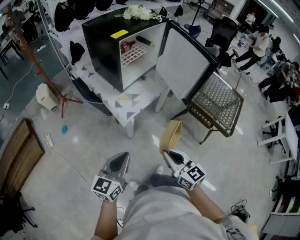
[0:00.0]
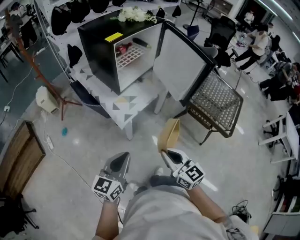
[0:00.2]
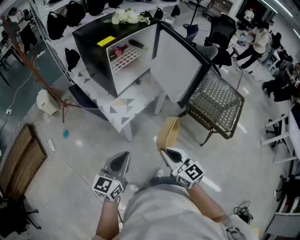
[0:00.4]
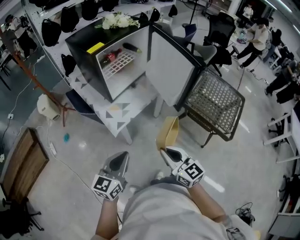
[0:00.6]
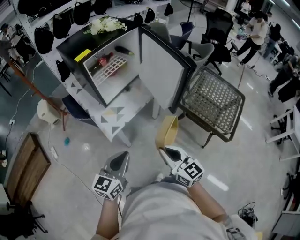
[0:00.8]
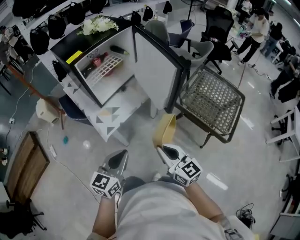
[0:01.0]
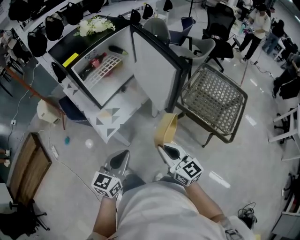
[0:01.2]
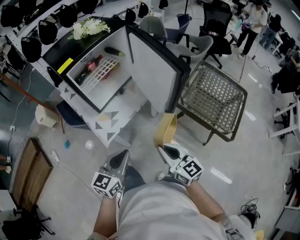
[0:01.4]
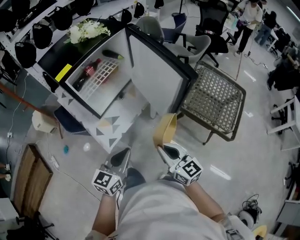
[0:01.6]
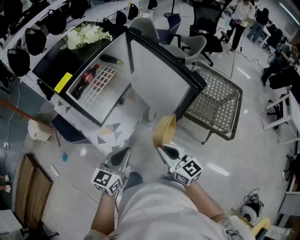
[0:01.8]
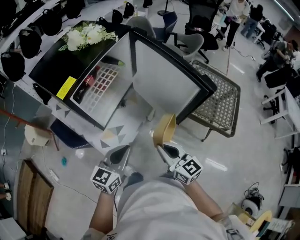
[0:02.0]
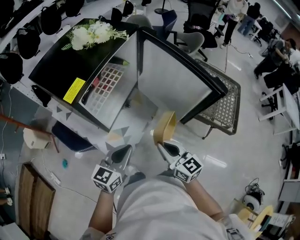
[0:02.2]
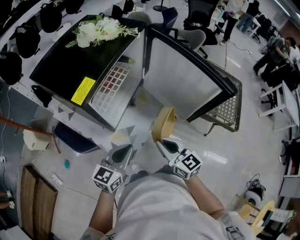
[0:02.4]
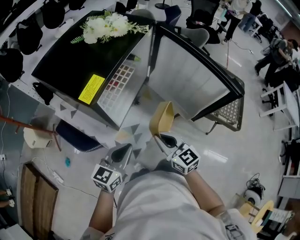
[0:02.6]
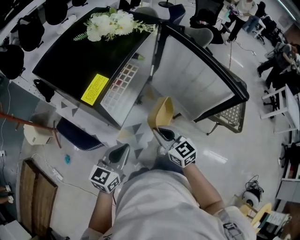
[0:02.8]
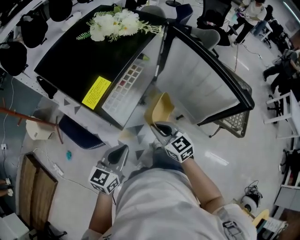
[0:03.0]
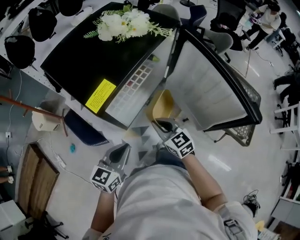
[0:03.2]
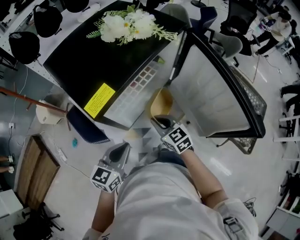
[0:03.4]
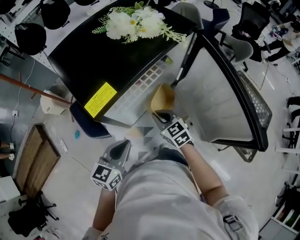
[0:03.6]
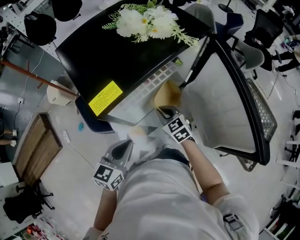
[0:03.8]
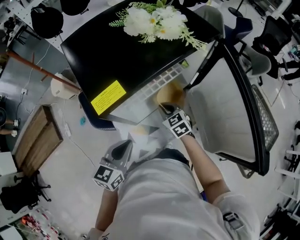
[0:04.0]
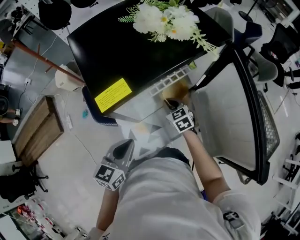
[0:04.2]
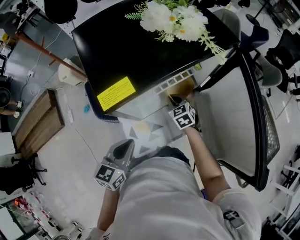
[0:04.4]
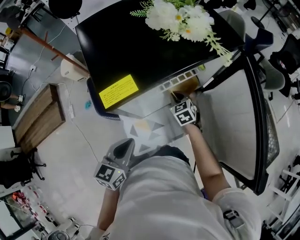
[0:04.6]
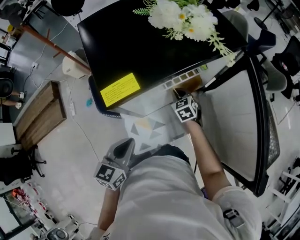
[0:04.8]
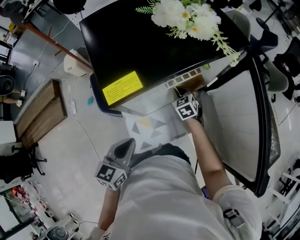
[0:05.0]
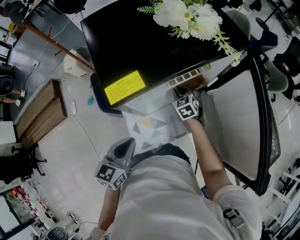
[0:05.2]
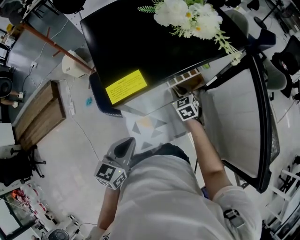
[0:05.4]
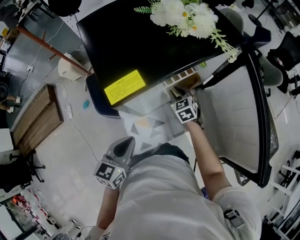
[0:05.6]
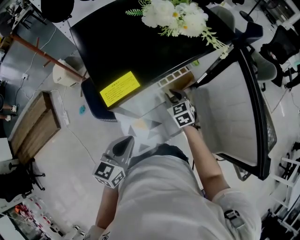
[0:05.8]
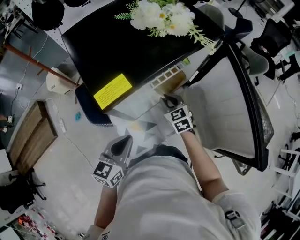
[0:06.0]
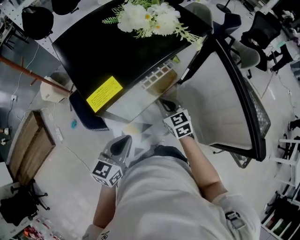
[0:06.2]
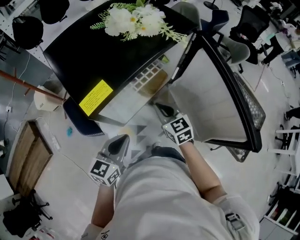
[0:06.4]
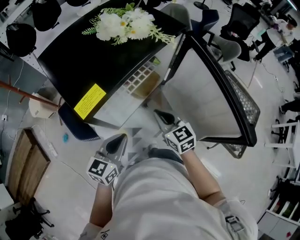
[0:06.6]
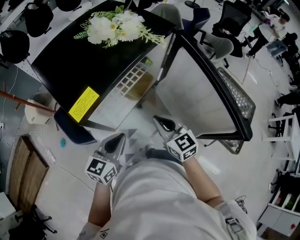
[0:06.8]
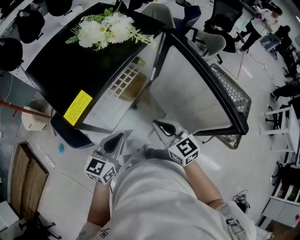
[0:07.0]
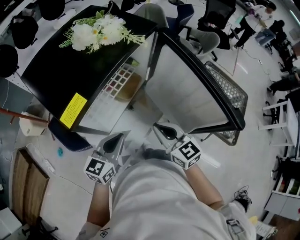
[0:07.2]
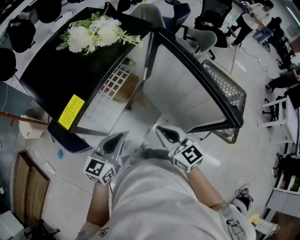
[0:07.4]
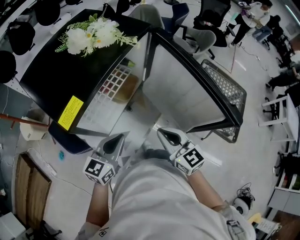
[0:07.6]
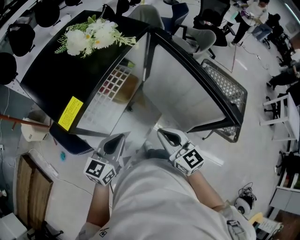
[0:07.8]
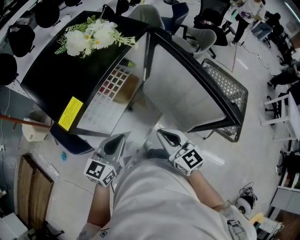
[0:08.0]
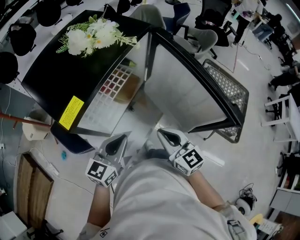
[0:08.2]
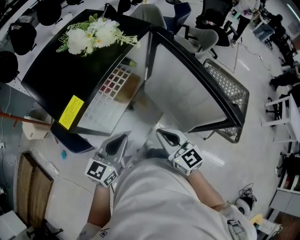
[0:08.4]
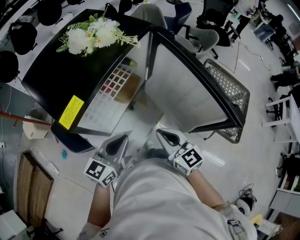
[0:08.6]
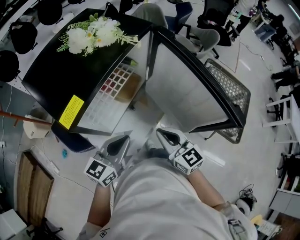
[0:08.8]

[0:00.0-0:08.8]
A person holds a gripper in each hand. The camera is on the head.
0:00.0 to 0:01.4: Both grippers travel together to the right and forward, about 25 cm.
0:01.4 to 0:03.0: The grippers both shift to the left and forward by approximately 30 cm.
0:03.0 to 0:04.4: The left gripper rotates approximately 30 degrees. The right gripper moves forward and downward, some 25 cm, and turns by approximately 30 degrees.
0:04.4 to 0:05.8: The grippers make only small movements.
0:05.8 to 0:07.4: The left gripper shifts some 10 cm to the right, and changes its angle by approximately 30 degrees, while the right gripper is displaced backward, upward and to the right by roughly 30 cm, and swivels about 30 degrees.
0:07.4 to 0:08.8: There are only small adjustments of the grippers.

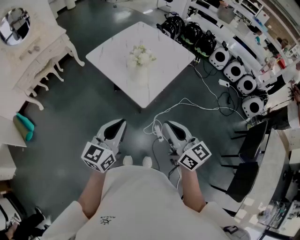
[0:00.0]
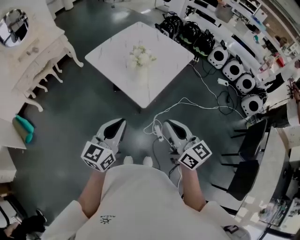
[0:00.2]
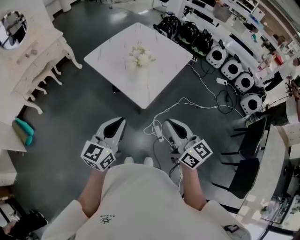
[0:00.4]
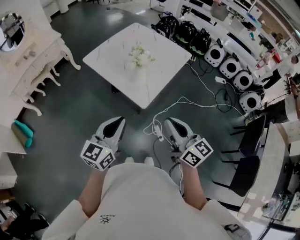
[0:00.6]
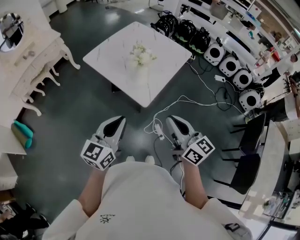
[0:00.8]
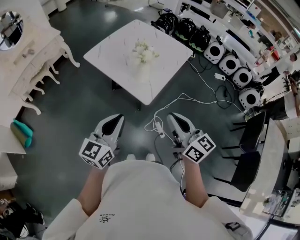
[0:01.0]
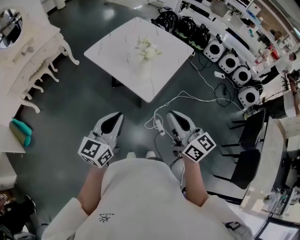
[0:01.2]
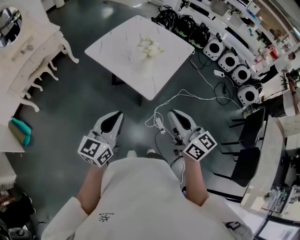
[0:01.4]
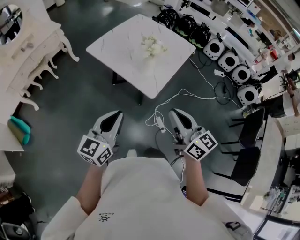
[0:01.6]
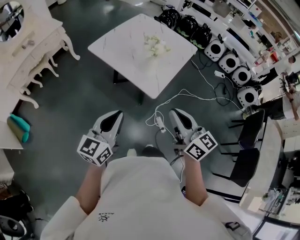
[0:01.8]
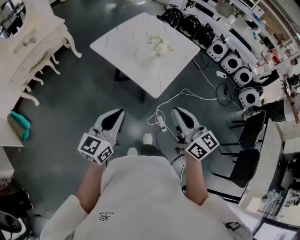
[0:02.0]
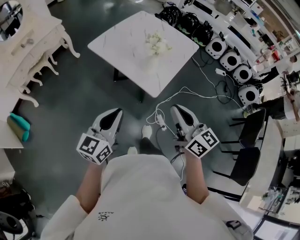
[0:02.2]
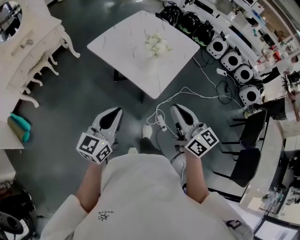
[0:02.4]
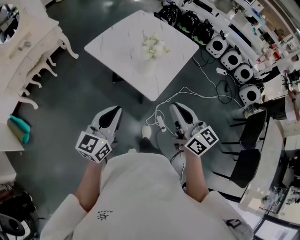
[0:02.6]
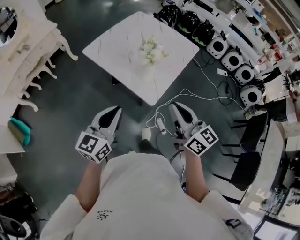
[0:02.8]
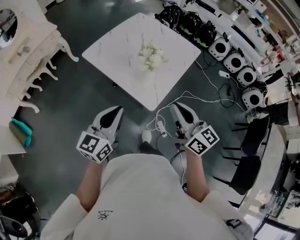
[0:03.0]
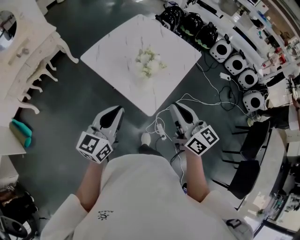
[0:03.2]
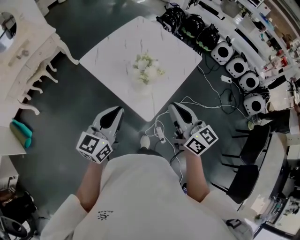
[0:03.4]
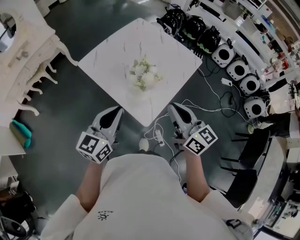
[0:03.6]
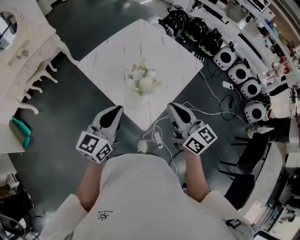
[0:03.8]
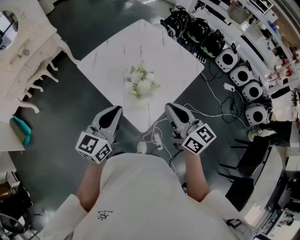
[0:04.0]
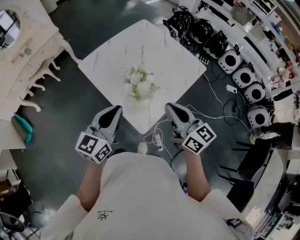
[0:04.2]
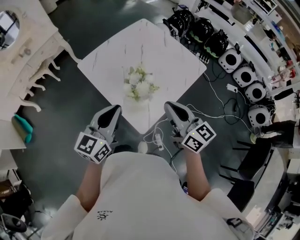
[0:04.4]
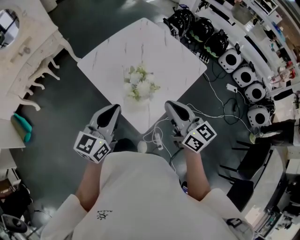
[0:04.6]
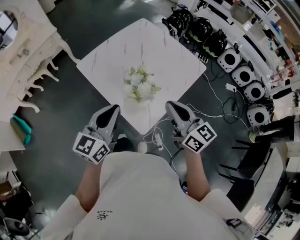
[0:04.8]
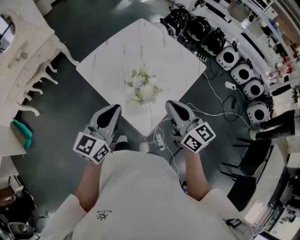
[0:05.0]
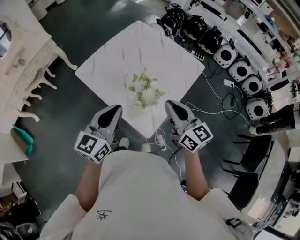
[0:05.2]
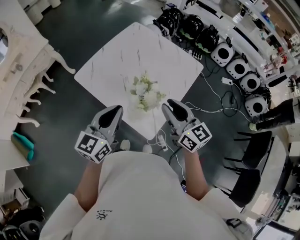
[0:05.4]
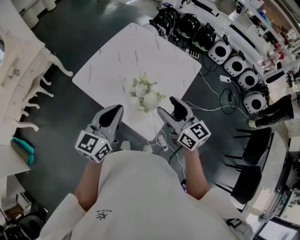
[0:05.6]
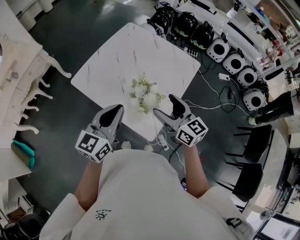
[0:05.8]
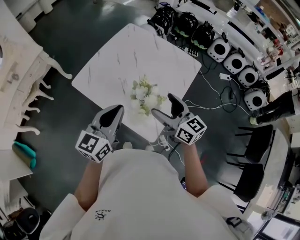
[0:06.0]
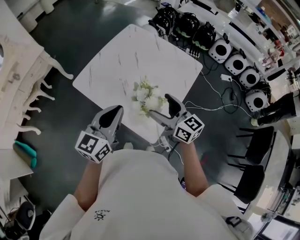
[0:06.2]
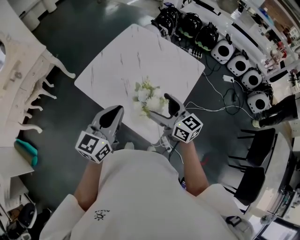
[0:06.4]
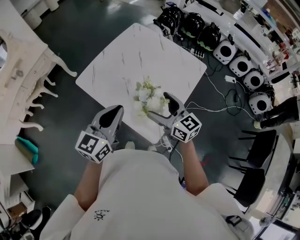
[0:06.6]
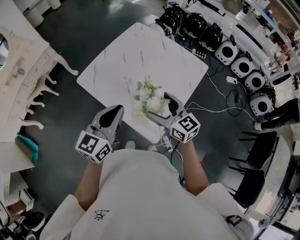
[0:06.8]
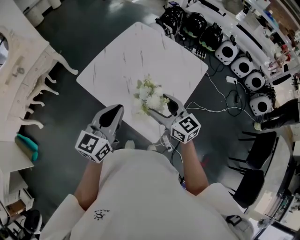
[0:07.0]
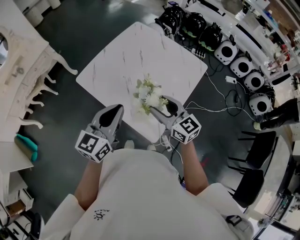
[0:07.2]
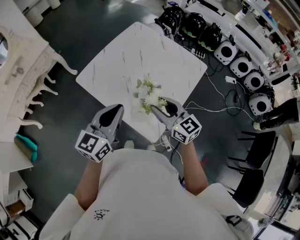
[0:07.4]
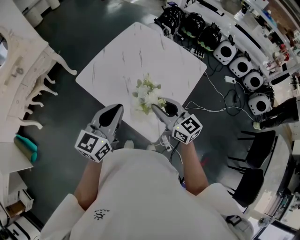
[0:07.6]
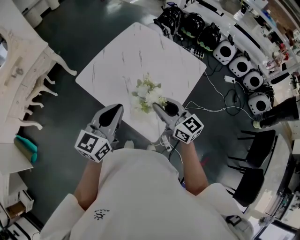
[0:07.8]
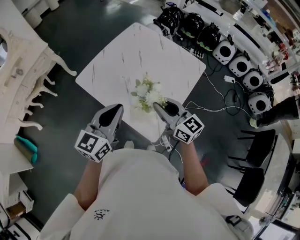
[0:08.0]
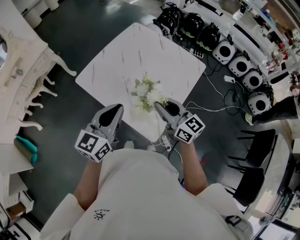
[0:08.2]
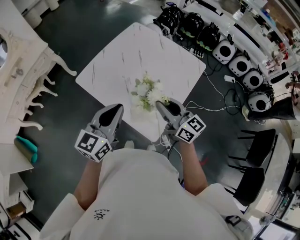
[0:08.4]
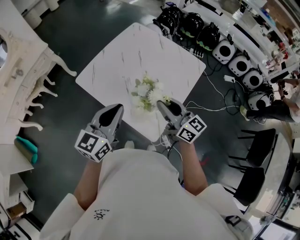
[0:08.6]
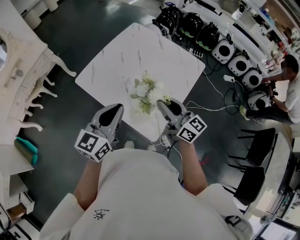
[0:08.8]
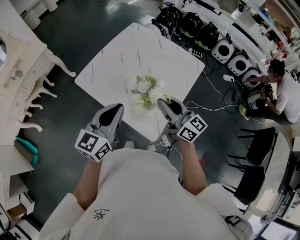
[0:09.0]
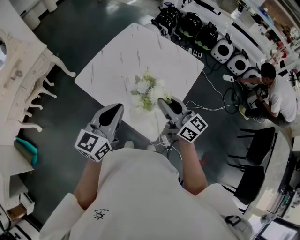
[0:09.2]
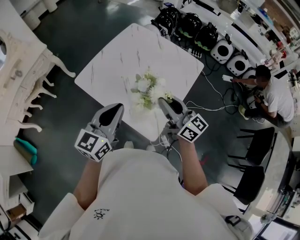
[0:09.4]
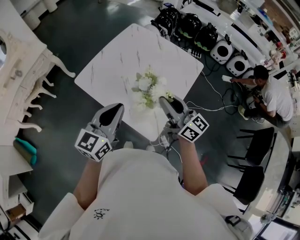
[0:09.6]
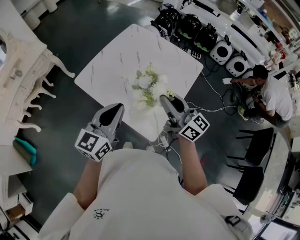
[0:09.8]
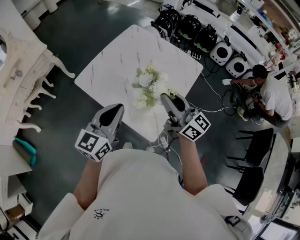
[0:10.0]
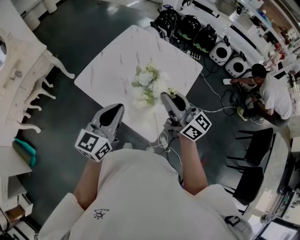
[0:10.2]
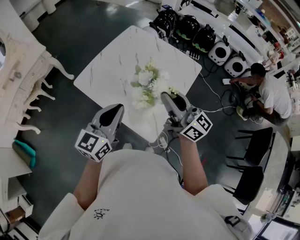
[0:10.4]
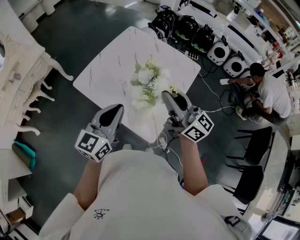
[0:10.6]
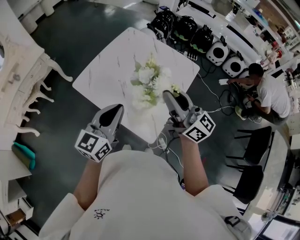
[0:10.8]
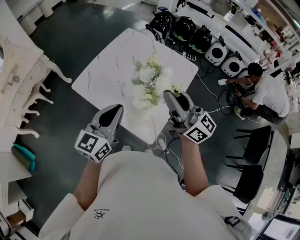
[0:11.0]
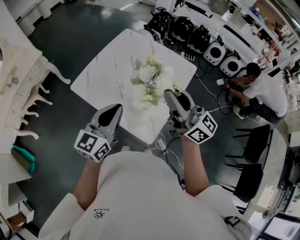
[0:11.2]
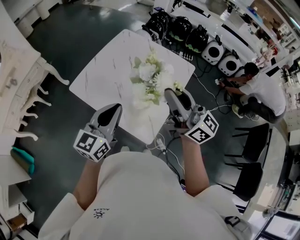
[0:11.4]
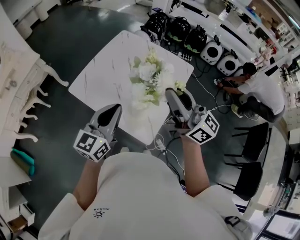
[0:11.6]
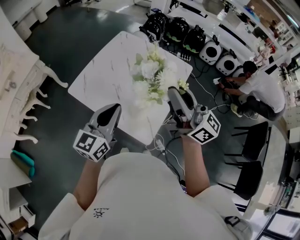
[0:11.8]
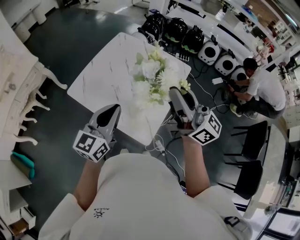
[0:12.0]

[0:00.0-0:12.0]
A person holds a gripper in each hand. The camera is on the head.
0:00.0 to 0:01.6: Both grippers travel together to the left, roughly 10 cm.
0:01.6 to 0:03.0: Both grippers move forward, roughly 15 cm.
0:03.0 to 0:04.4: The right gripper shifts roughly 15 cm forward. Meanwhile the left gripper travels forward and to the right by about 15 cm.
0:04.4 to 0:06.0: The right gripper goes some 10 cm forward and to the left, and opens. Meanwhile the left gripper is displaced forward by approximately 5 cm.
0:06.0 to 0:07.6: The right gripper closes up.
0:07.6 to 0:09.0: The grippers stay close to where they were, moving slightly.
0:09.0 to 0:10.4: The right gripper heads upward, covering some 5 cm.
0:10.4 to 0:12.0: The right gripper goes roughly 10 cm upward.

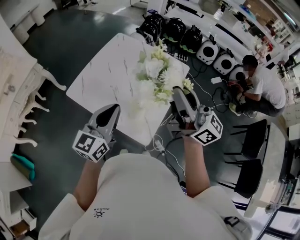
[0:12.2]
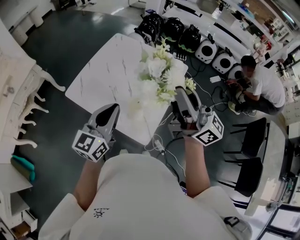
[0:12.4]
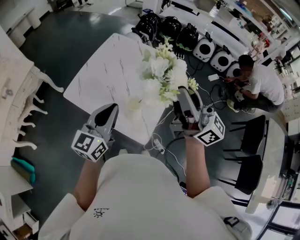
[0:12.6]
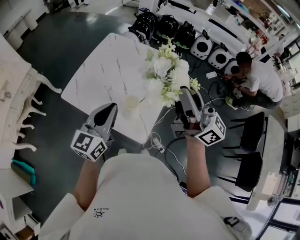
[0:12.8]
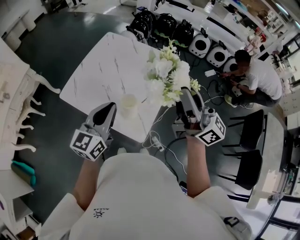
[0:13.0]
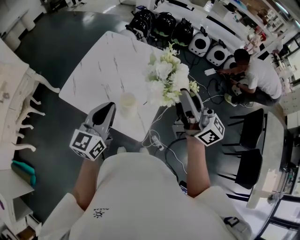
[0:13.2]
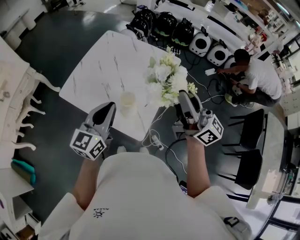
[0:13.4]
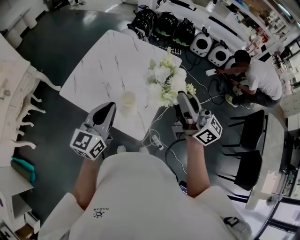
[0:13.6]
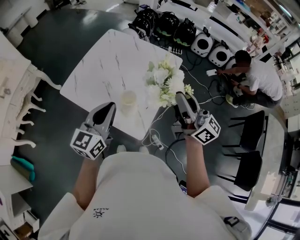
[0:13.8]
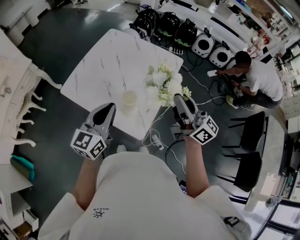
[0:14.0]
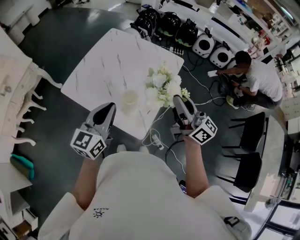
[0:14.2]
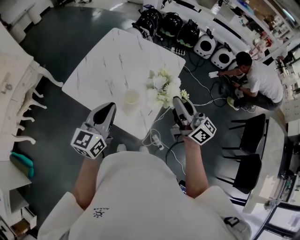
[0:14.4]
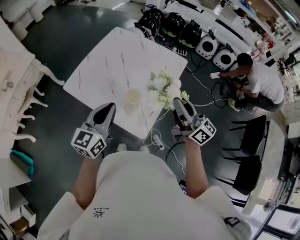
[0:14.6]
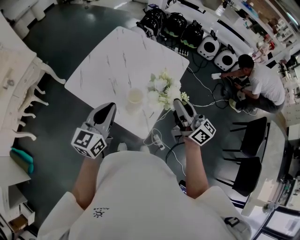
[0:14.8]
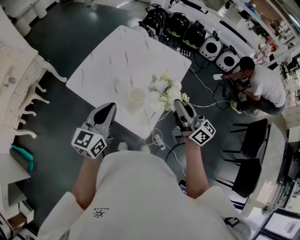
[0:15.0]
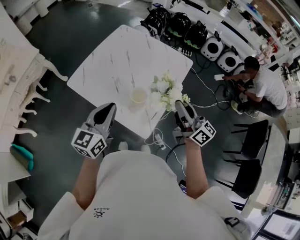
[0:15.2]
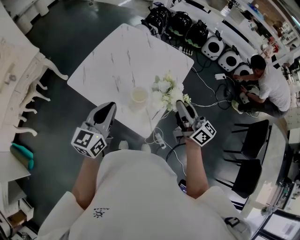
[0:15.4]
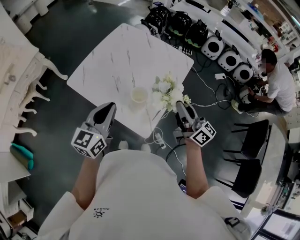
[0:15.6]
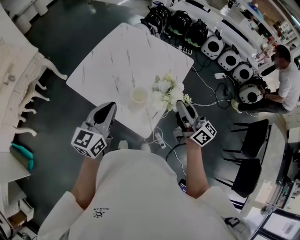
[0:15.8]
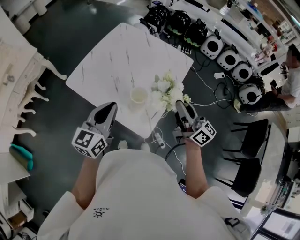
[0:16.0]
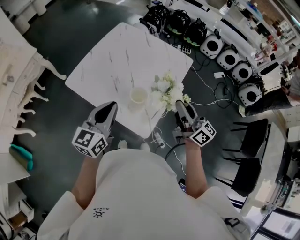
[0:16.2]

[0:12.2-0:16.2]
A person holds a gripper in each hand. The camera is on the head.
0:12.2 to 0:13.6: The right gripper travels to the right and downward by about 10 cm.
0:13.6 to 0:14.8: The right gripper moves downward, approximately 10 cm.
0:14.8 to 0:16.2: There are only small adjustments of the grippers.
